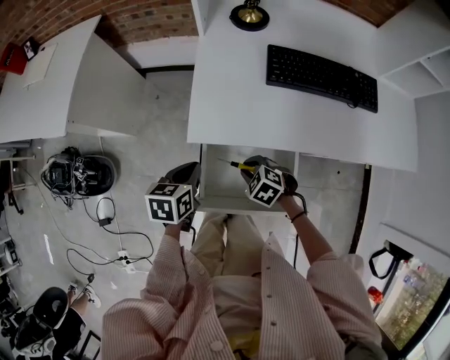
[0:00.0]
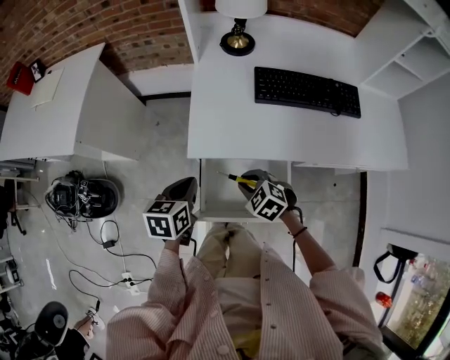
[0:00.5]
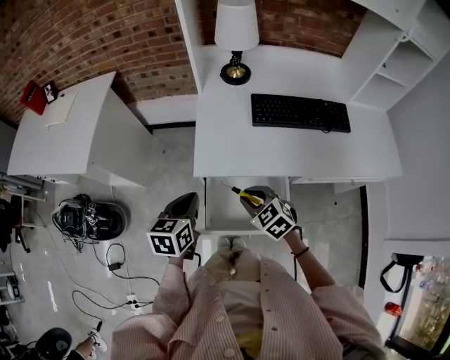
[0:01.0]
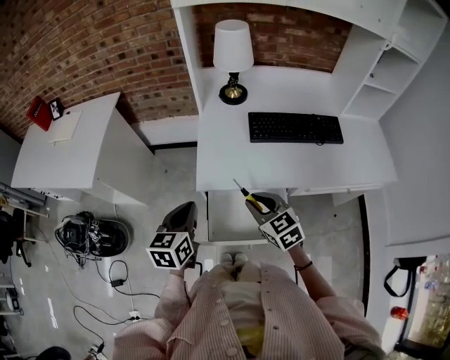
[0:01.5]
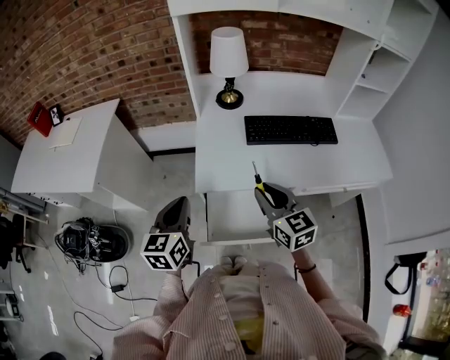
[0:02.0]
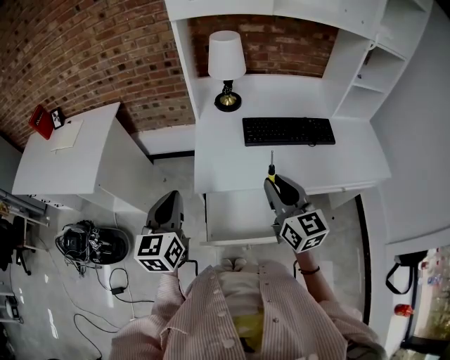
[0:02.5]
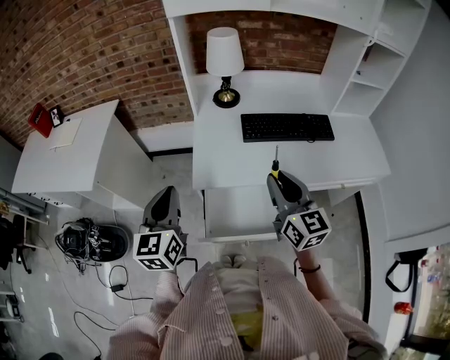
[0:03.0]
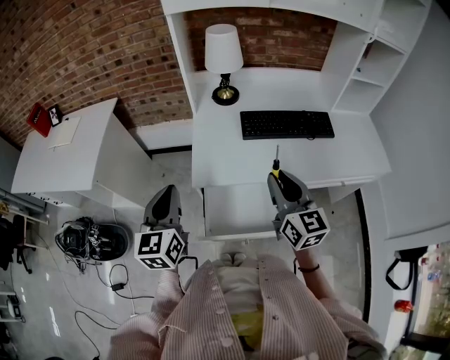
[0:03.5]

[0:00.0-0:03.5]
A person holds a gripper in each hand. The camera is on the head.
0.0 to 2.0 s: The two grippers go some 25 cm upward. The left gripper turns by about 30 degrees. The right gripper tilts its fingers roughly 50 degrees upward.
2.0 to 3.5 s: Both grippers travel together upward, roughly 5 cm.

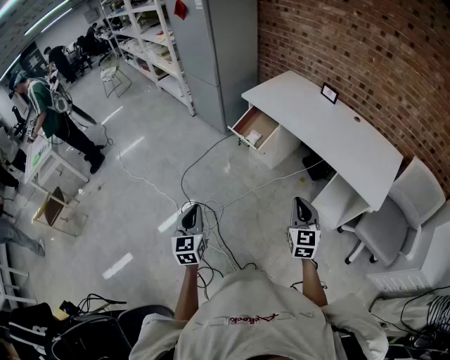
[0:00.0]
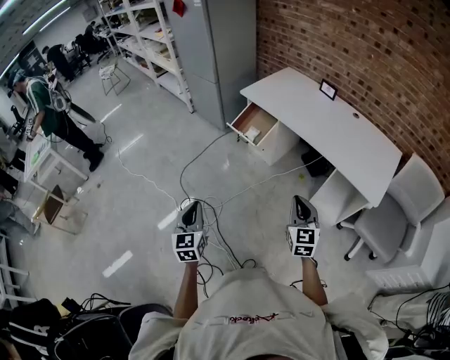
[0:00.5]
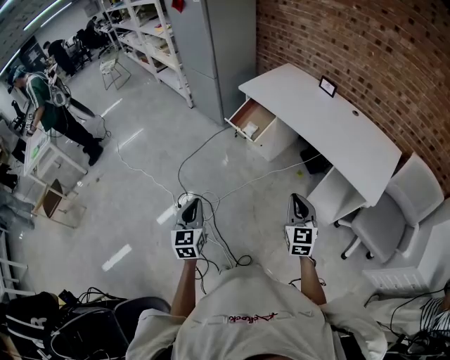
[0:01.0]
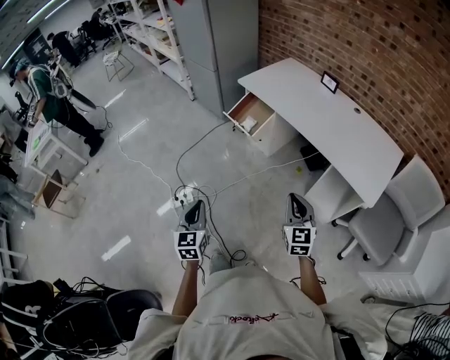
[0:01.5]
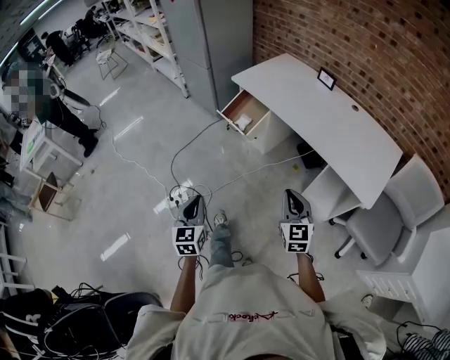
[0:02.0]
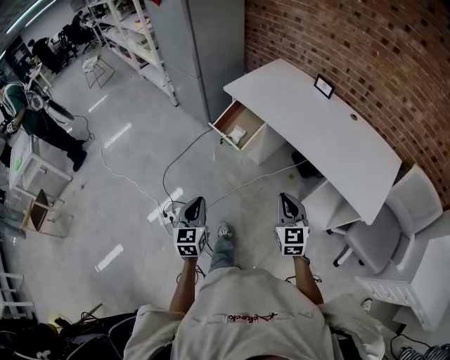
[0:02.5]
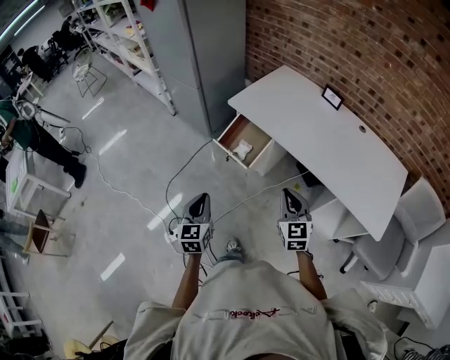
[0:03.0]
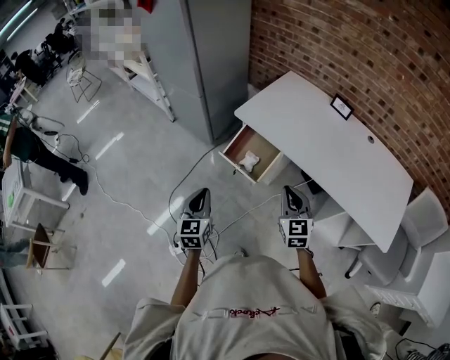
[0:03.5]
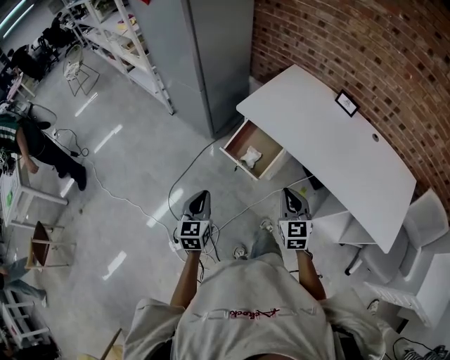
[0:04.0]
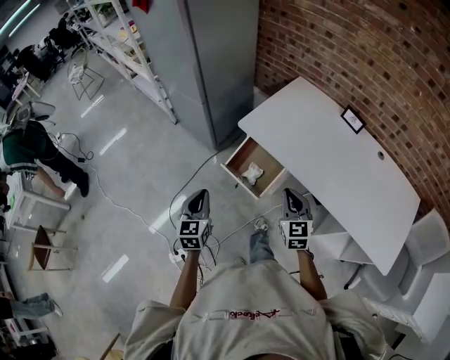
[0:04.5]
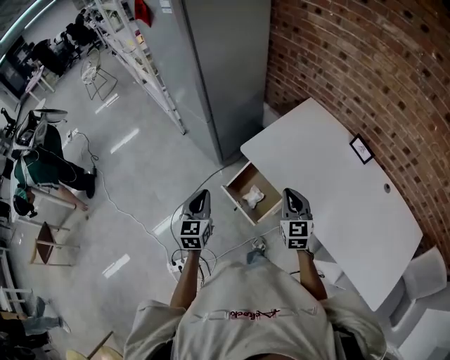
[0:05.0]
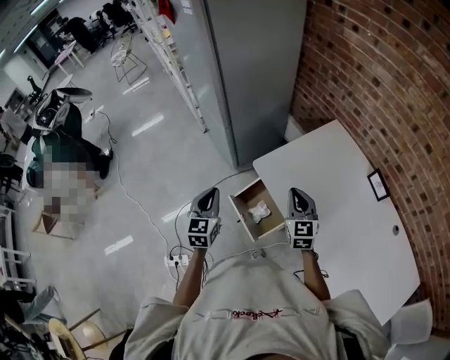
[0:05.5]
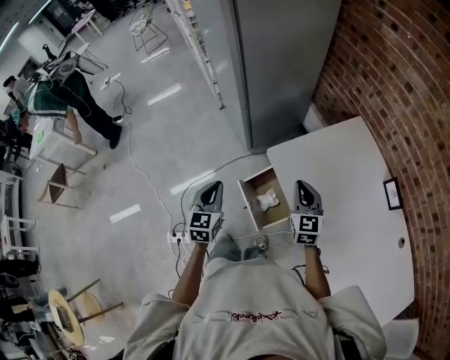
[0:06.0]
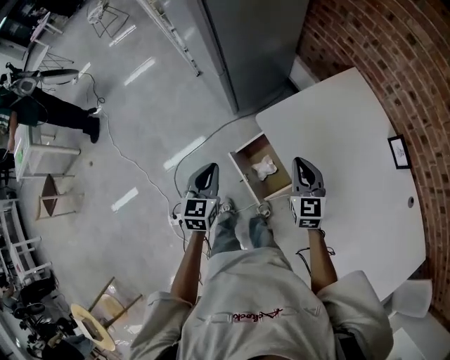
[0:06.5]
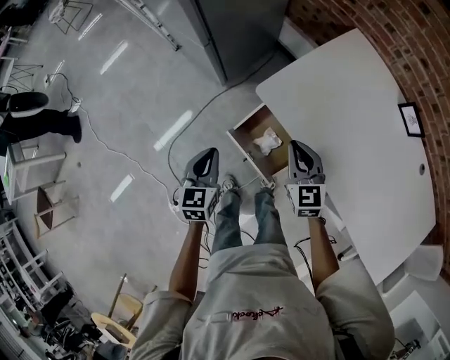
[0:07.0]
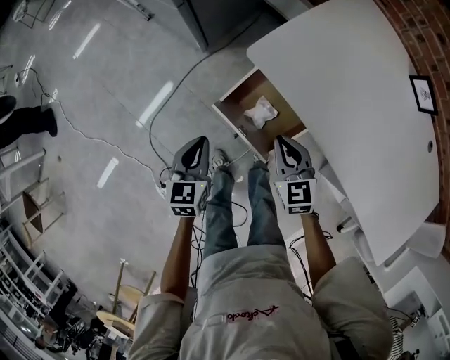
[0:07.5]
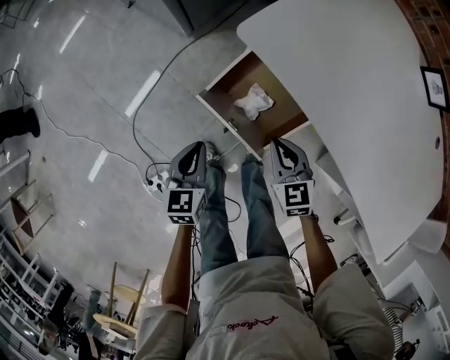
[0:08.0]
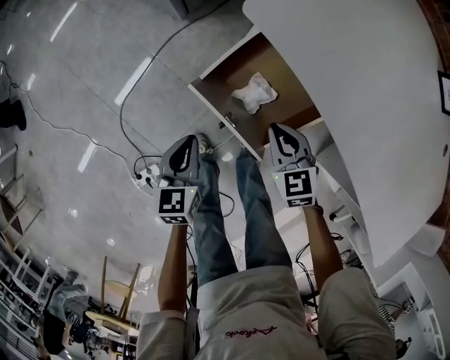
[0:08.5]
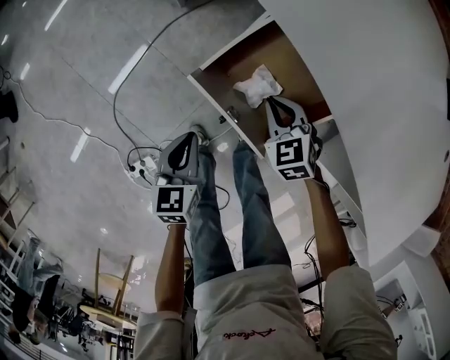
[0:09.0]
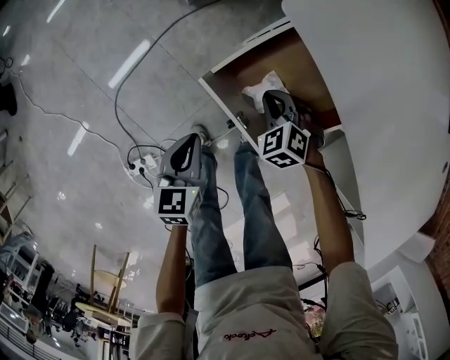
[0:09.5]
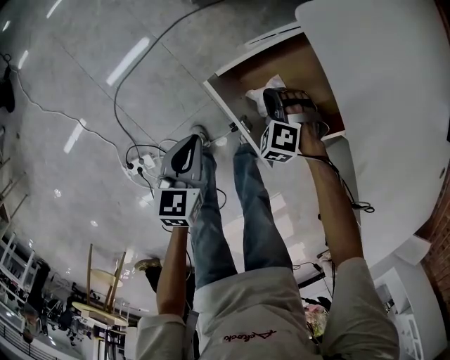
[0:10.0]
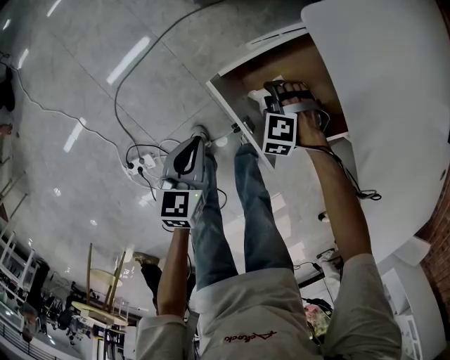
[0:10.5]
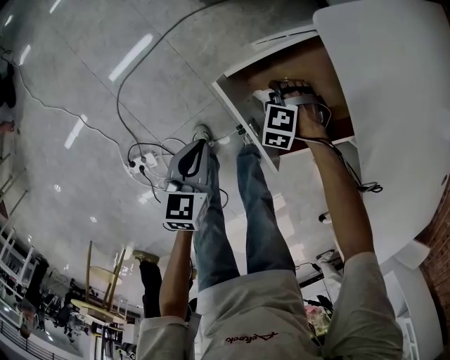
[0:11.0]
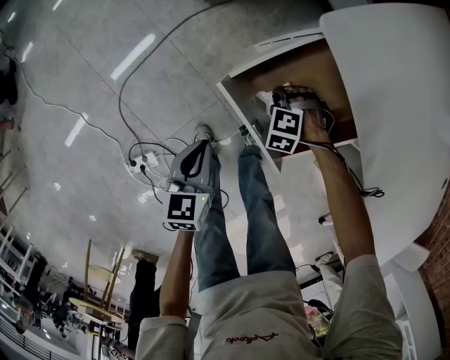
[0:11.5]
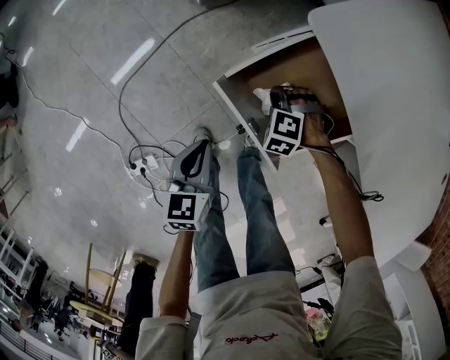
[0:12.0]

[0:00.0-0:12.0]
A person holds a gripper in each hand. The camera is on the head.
0.0 to 2.0 s: The right gripper shifts by roughly 5 cm. The left gripper is displaced to the right by some 10 cm.
2.0 to 4.0 s: The right gripper heads forward and to the left, covering about 40 cm; the left gripper travels forward by about 40 cm.
4.0 to 6.0 s: The grippers both shift forward by approximately 30 cm. The right gripper changes its angle by roughly 20 degrees.
6.0 to 8.0 s: Both grippers move downward, roughly 30 cm. The right gripper swivels approximately 20 degrees; the left gripper swivels roughly 30 degrees.
8.0 to 10.0 s: The right gripper moves downward, approximately 20 cm, and rotates around the line of its fingers by some 70 degrees, counterclockwise from behind. Meanwhile the left gripper moves downward, about 10 cm.
10.0 to 12.0 s: The right gripper opens and closes again.

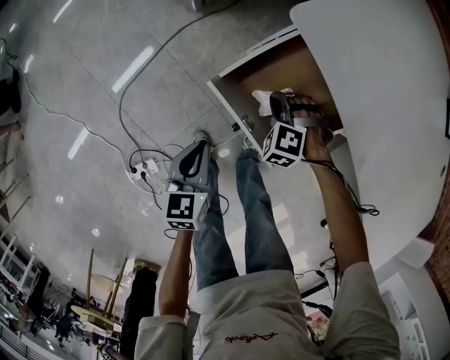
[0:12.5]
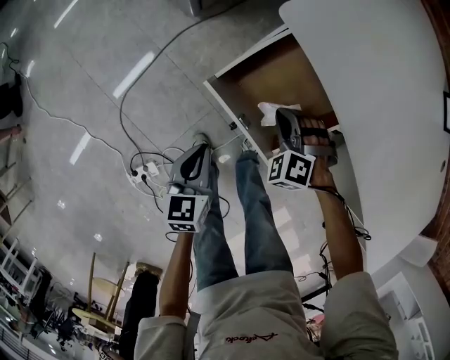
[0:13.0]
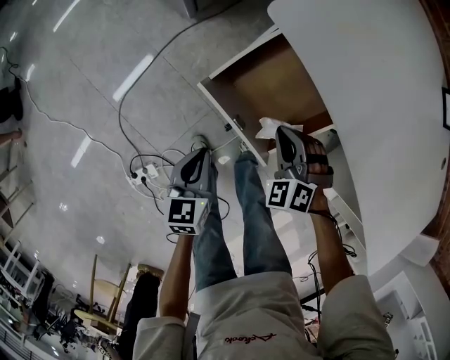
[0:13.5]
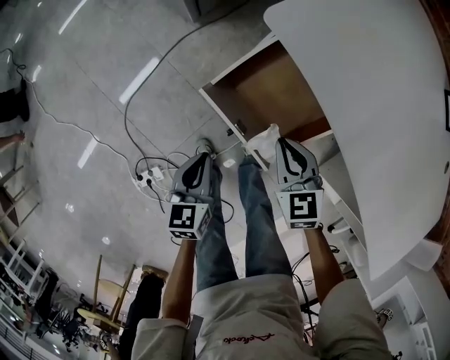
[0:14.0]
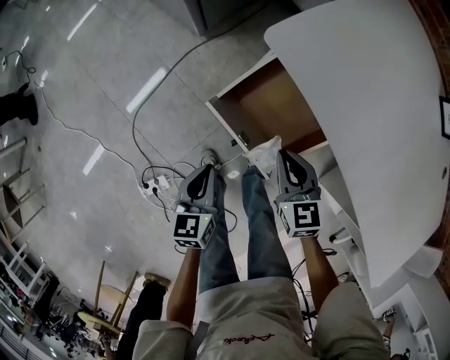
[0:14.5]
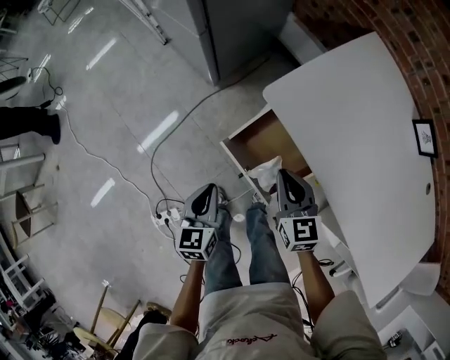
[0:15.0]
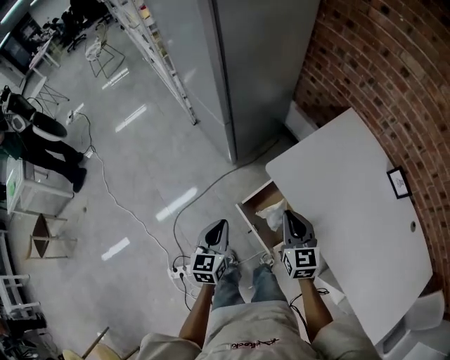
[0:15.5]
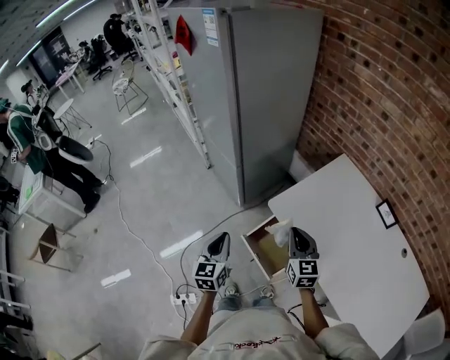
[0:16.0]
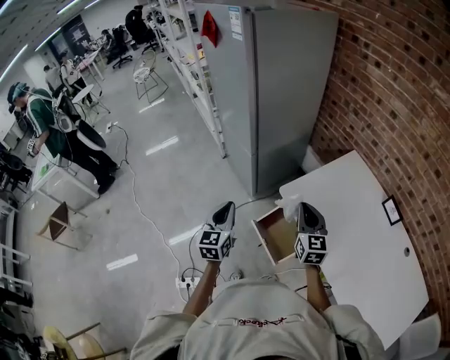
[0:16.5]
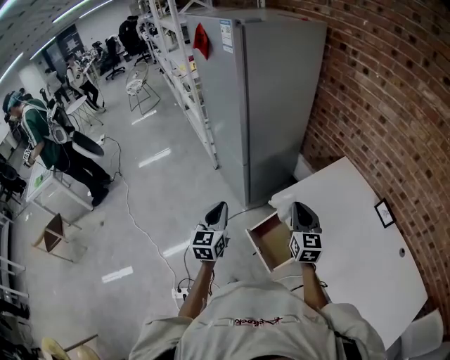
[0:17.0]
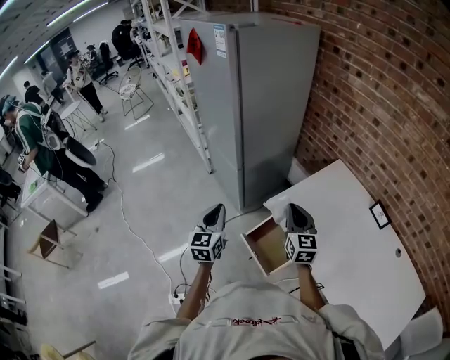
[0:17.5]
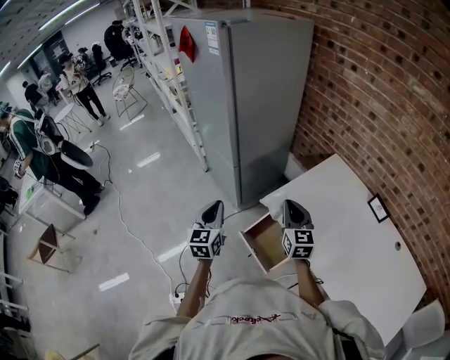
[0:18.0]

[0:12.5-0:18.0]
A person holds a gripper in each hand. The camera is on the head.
12.5 to 14.5 s: The right gripper heads upward, covering about 15 cm, and rolls clockwise, seen from behind, by some 70 degrees.
14.5 to 16.0 s: The two grippers go roughly 35 cm upward. The right gripper swivels approximately 20 degrees, while the left gripper turns by some 30 degrees.
16.0 to 18.0 s: The grippers both shift upward by roughly 5 cm.

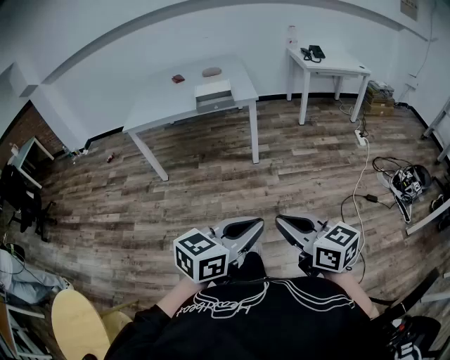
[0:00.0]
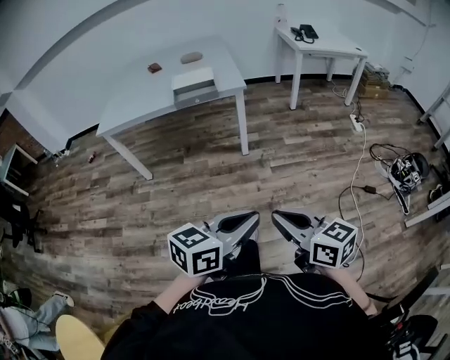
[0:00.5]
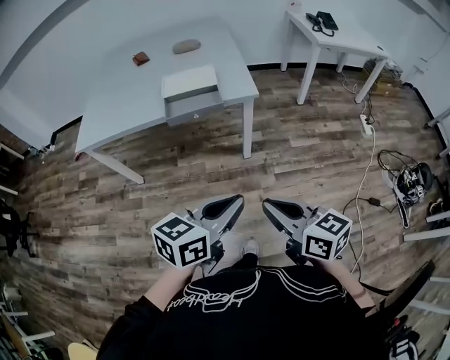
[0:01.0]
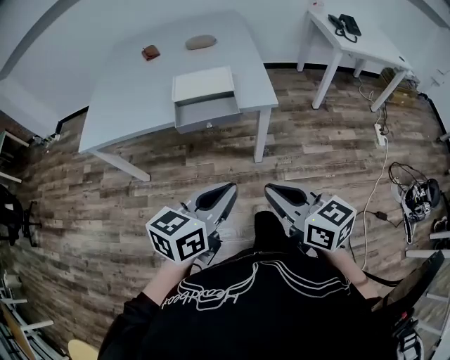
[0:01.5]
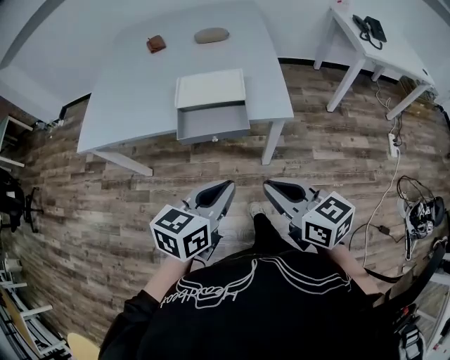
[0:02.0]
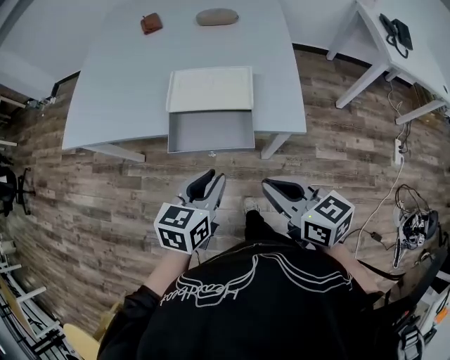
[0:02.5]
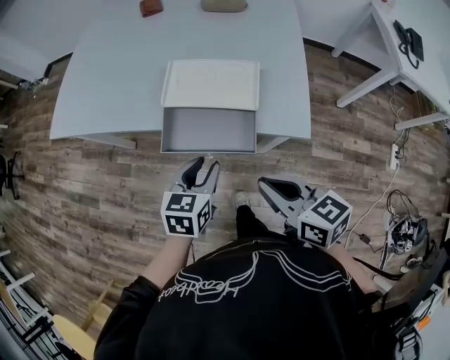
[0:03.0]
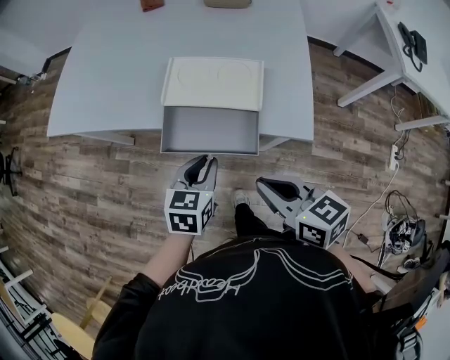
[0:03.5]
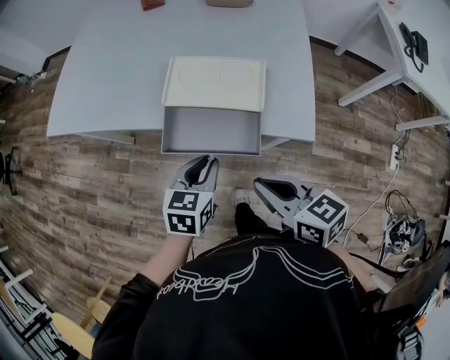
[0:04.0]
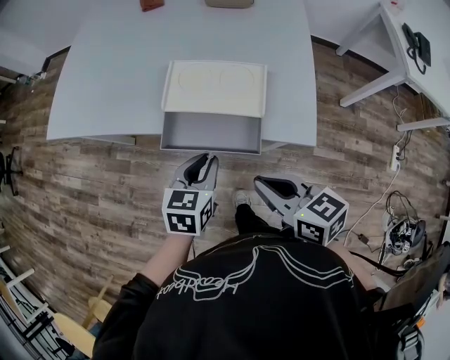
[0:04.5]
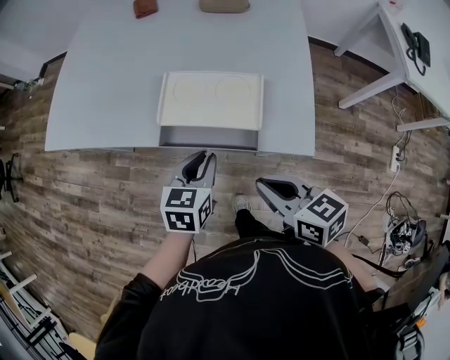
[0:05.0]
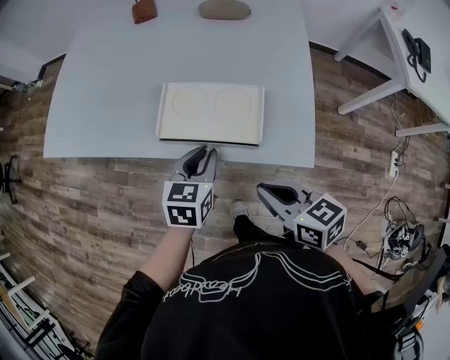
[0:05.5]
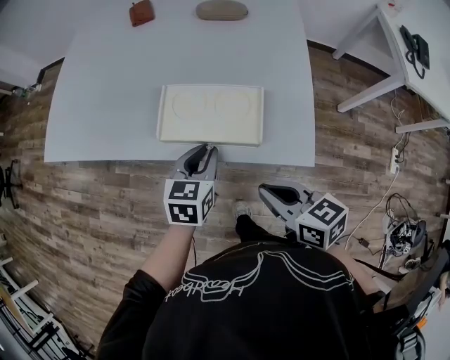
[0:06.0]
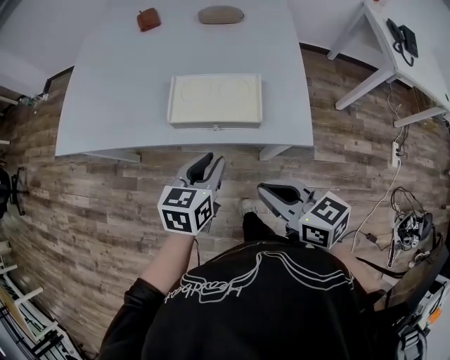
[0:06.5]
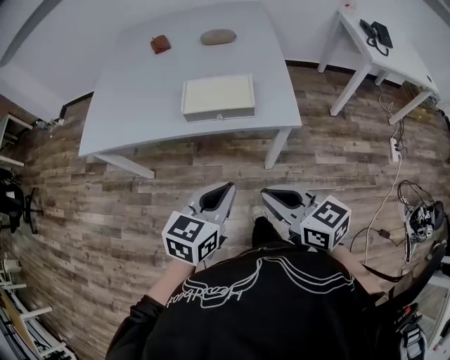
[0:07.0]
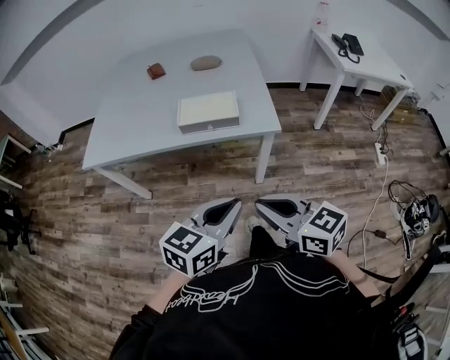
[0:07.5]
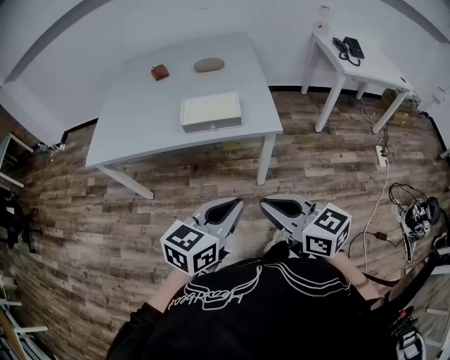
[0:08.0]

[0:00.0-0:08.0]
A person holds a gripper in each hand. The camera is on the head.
0.0 to 2.0 s: Both grippers are carried forward, some 70 cm. The left gripper turns by about 20 degrees.
2.0 to 4.0 s: The grippers both shift forward and downward by about 20 cm. The left gripper changes its angle by some 20 degrees.
4.0 to 6.0 s: The left gripper travels forward by approximately 10 cm. The right gripper moves forward, roughly 5 cm.
6.0 to 8.0 s: Both grippers move backward and upward, approximately 35 cm. The left gripper swivels roughly 30 degrees. The right gripper swivels about 20 degrees.
